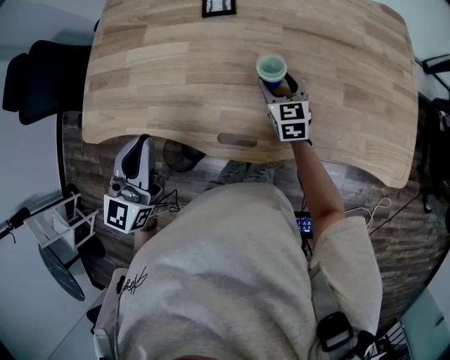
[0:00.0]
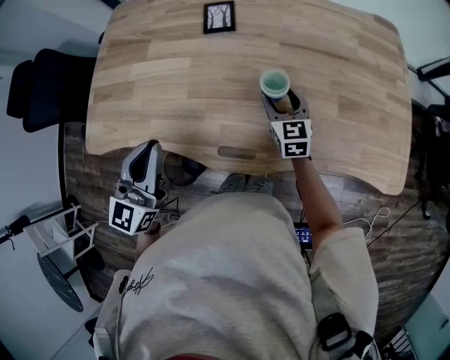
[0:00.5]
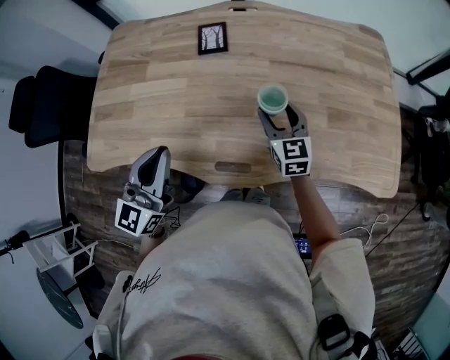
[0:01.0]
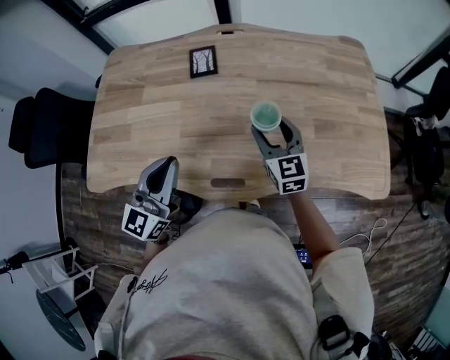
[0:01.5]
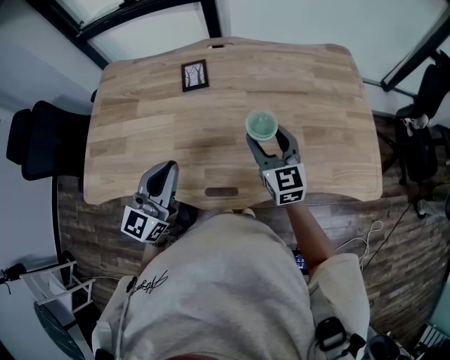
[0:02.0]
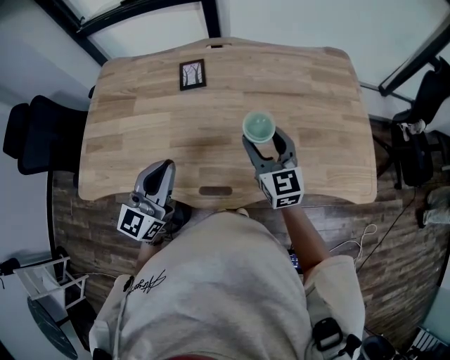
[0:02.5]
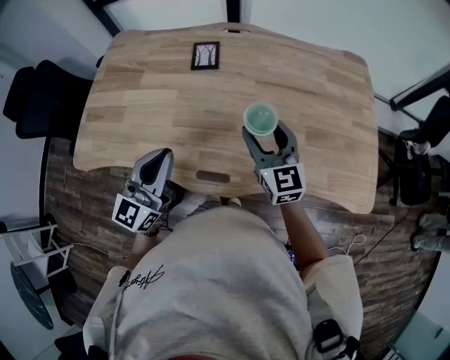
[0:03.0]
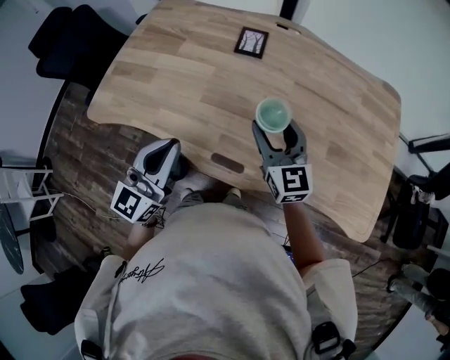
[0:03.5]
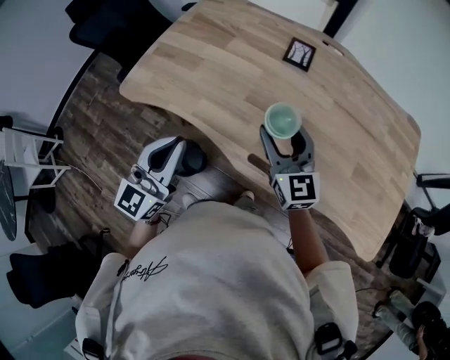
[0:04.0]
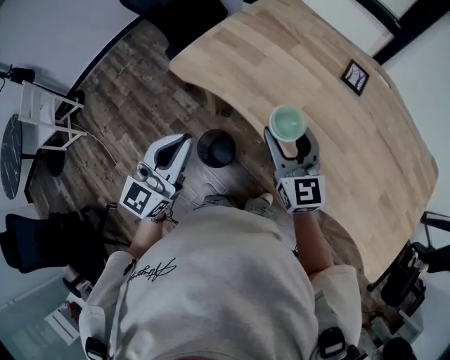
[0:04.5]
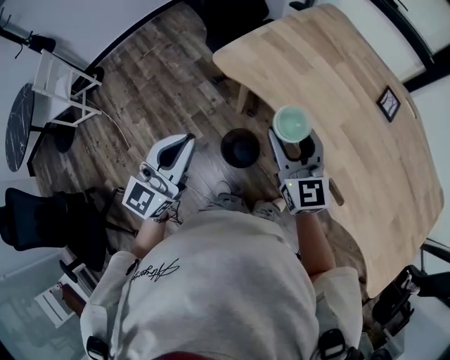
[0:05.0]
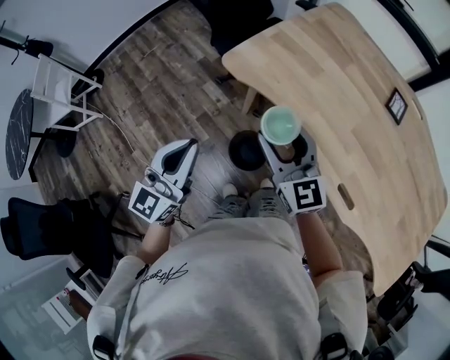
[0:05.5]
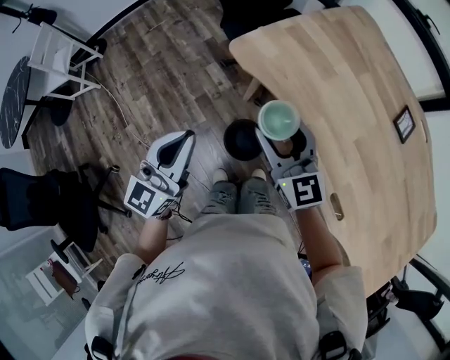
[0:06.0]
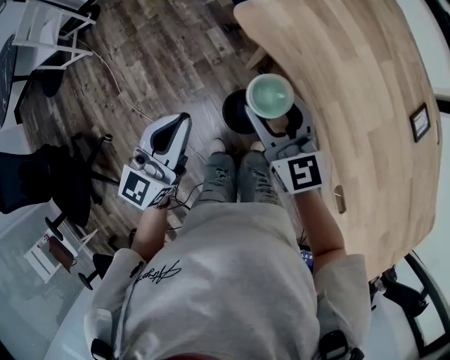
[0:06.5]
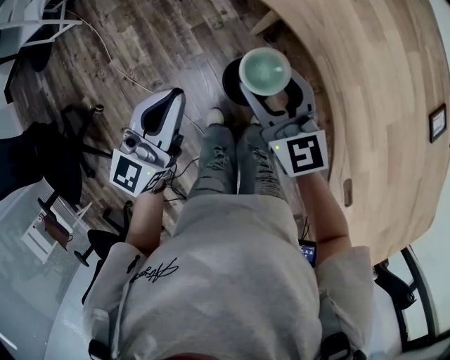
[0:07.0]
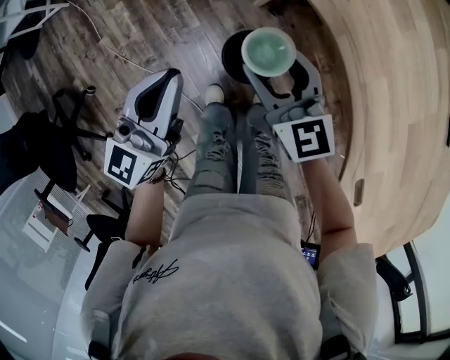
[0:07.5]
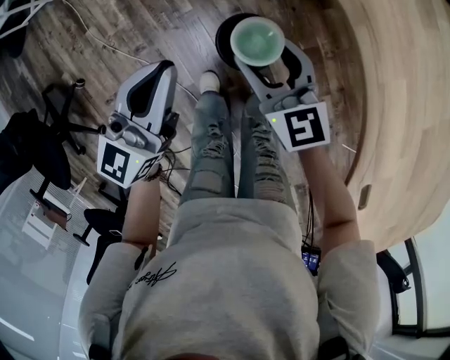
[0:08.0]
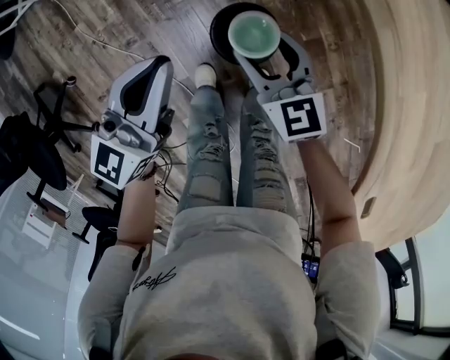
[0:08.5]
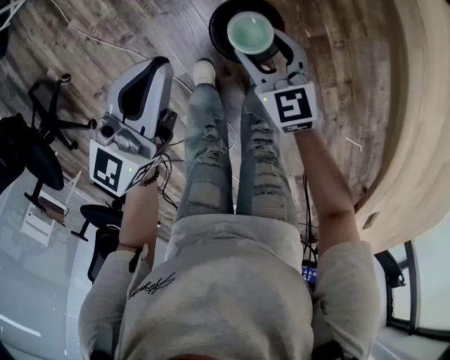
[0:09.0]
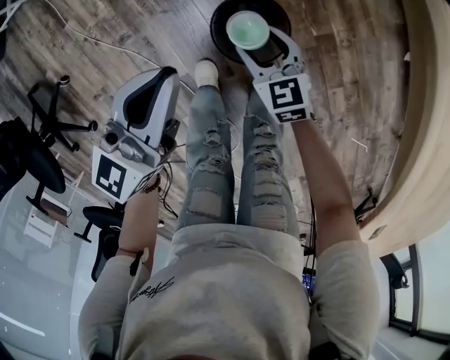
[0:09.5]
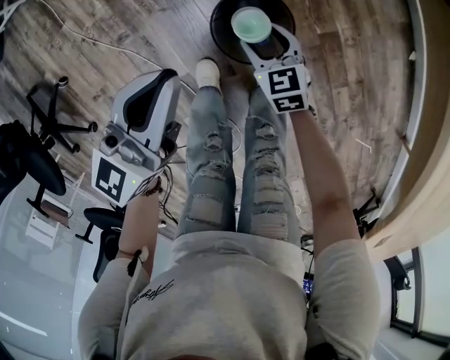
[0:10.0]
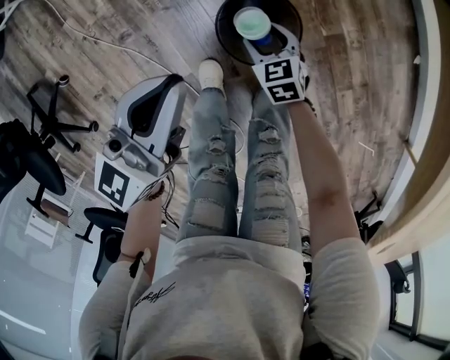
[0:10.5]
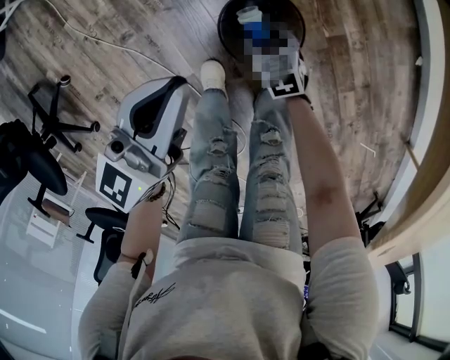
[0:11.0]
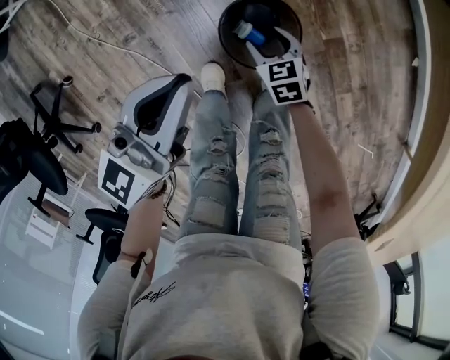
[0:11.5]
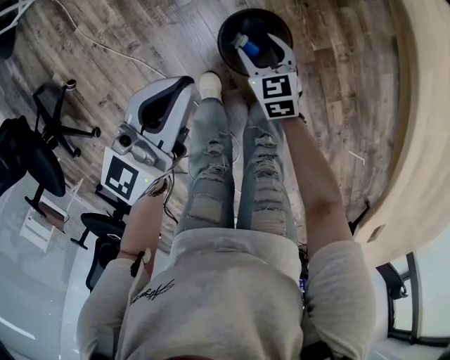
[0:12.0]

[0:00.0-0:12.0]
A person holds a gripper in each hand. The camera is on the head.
0:00.0 to 0:02.0: The right gripper heads upward, covering approximately 15 cm. Meanwhile the left gripper moves to the right, roughly 5 cm.
0:02.0 to 0:04.0: The left gripper changes place by roughly 20 cm, and swivels roughly 30 degrees, while the right gripper moves about 20 cm, and changes its angle by some 30 degrees.
0:04.0 to 0:06.0: The left gripper ends up some 30 cm from where it was, and changes its angle by about 30 degrees; the right gripper ends up about 40 cm from where it was, and changes its angle by approximately 30 degrees.
0:06.0 to 0:08.0: The two grippers go approximately 25 cm downward. The right gripper swivels some 20 degrees.
0:08.0 to 0:10.0: The right gripper travels downward by about 30 cm, and changes its angle by about 20 degrees. Meanwhile the left gripper travels downward by about 15 cm.
0:10.0 to 0:12.0: The right gripper moves approximately 10 cm downward and comes back.

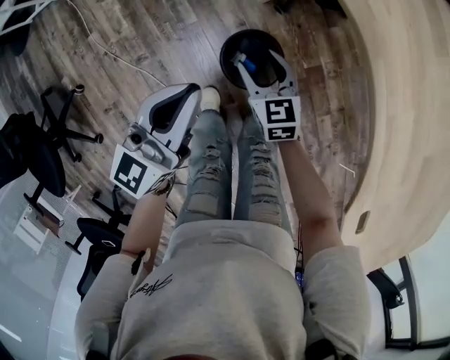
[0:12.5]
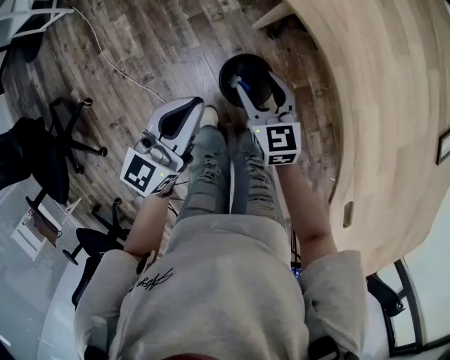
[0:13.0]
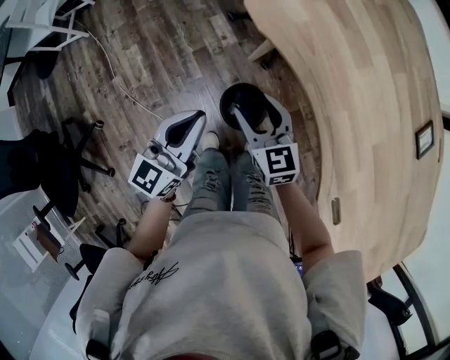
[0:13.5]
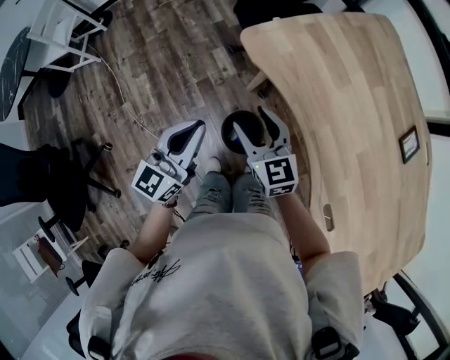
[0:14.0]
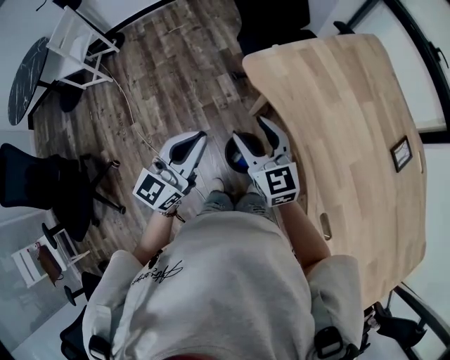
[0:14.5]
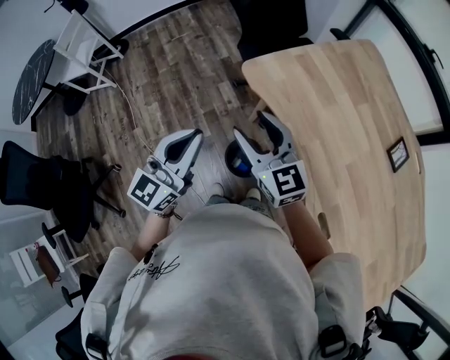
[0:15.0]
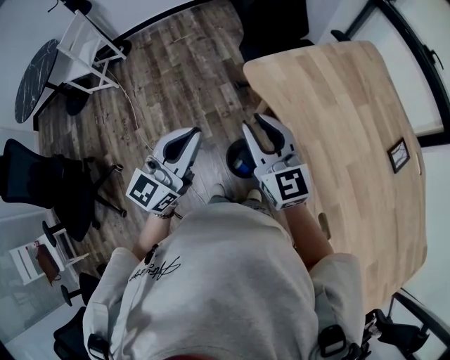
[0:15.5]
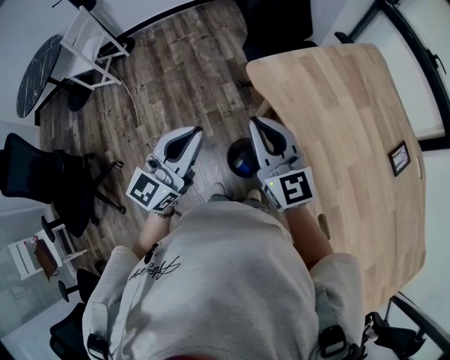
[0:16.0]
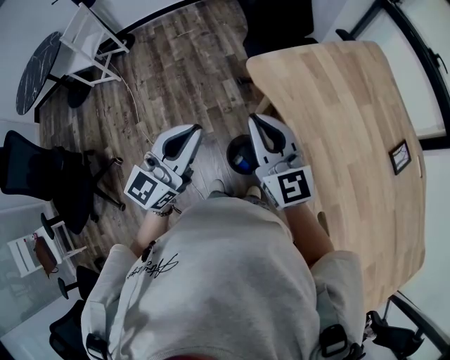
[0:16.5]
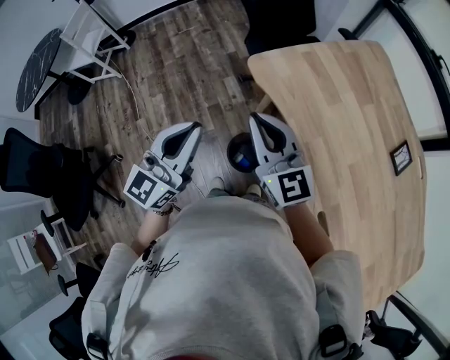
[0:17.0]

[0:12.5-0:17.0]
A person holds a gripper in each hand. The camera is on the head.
0:12.5 to 0:14.5: The left gripper travels upward by approximately 25 cm. The right gripper goes some 40 cm upward, and changes its angle by some 30 degrees.
0:14.5 to 0:17.0: The left gripper heads upward, covering some 5 cm. The right gripper shifts about 10 cm upward, and closes up.

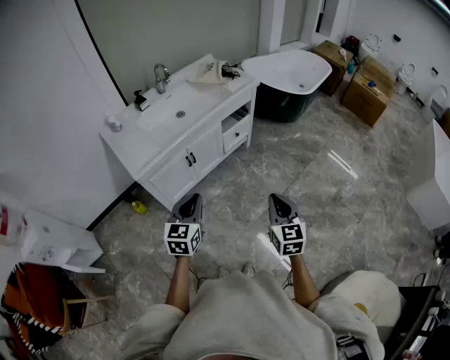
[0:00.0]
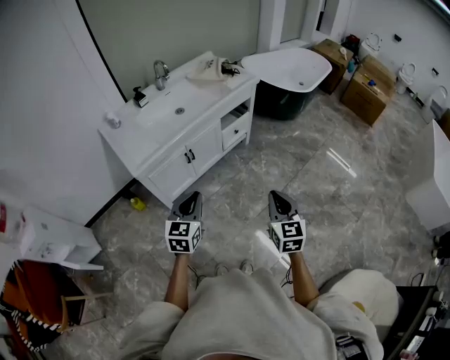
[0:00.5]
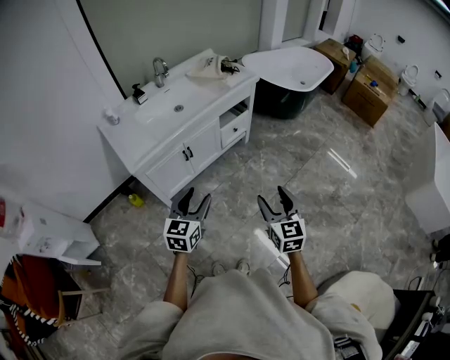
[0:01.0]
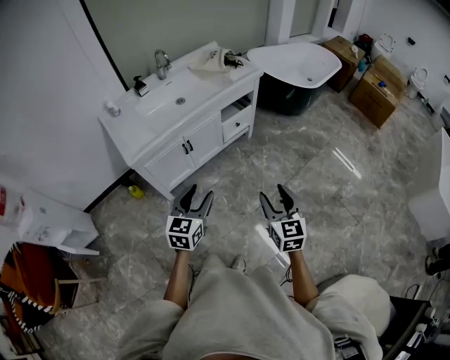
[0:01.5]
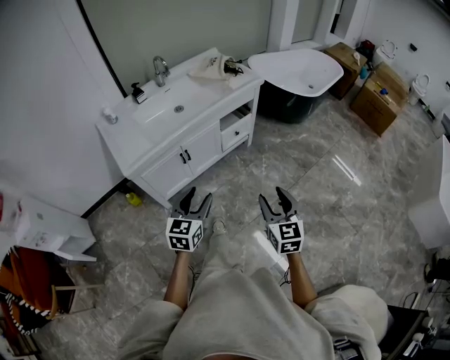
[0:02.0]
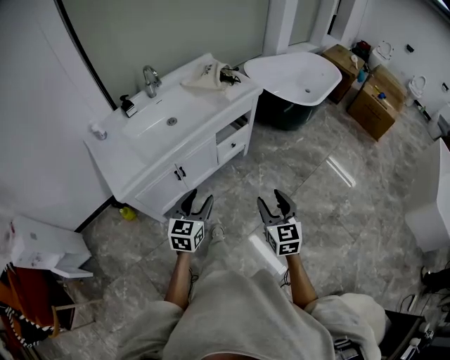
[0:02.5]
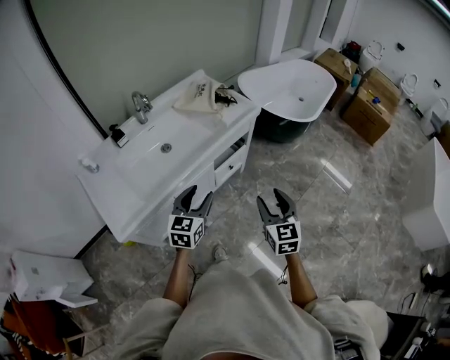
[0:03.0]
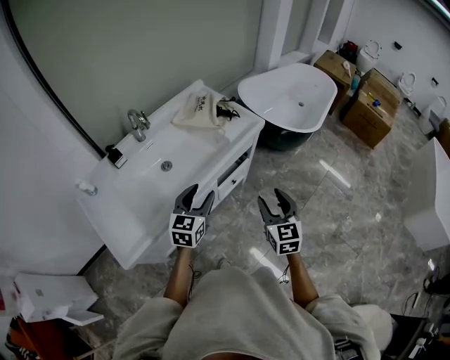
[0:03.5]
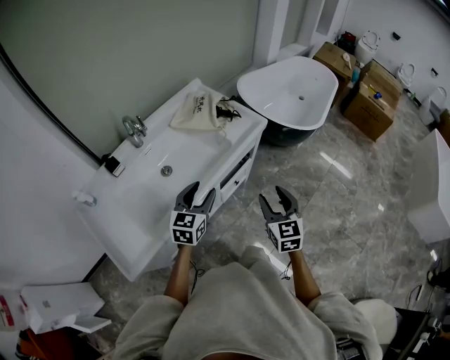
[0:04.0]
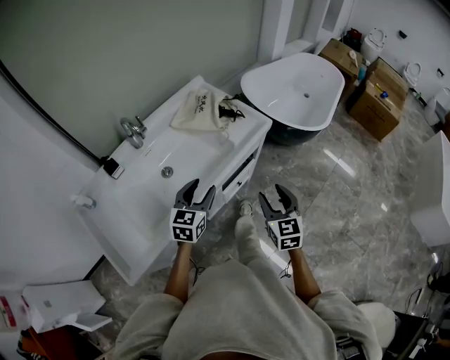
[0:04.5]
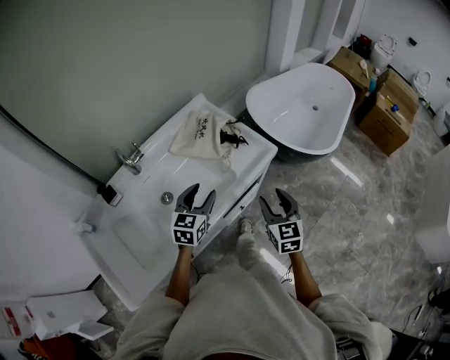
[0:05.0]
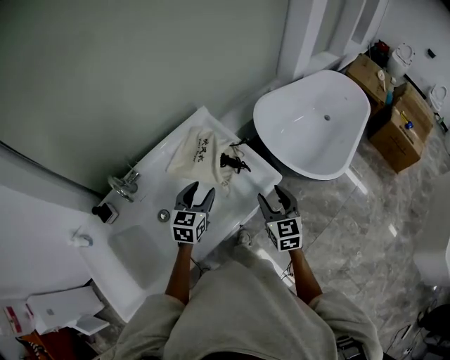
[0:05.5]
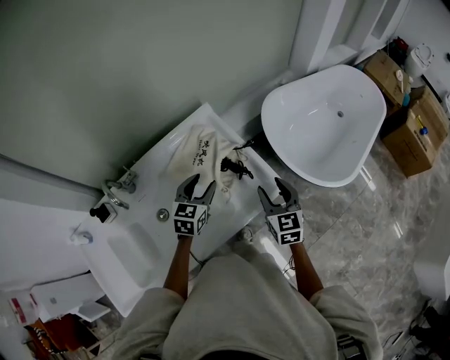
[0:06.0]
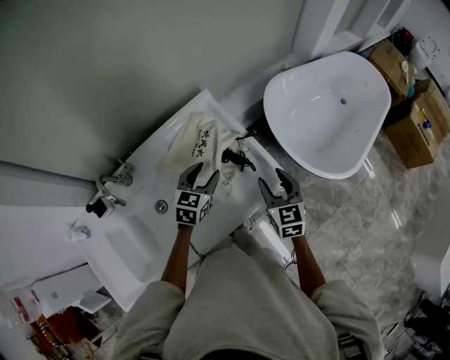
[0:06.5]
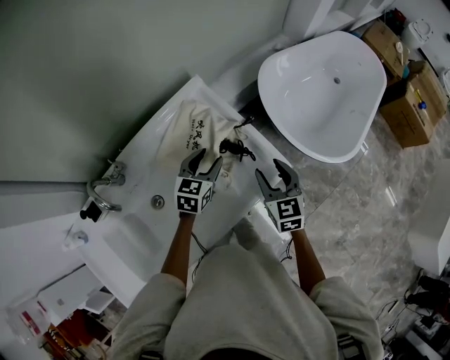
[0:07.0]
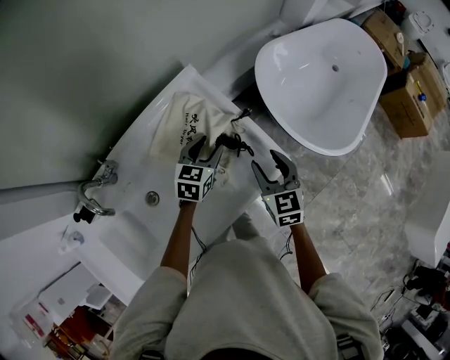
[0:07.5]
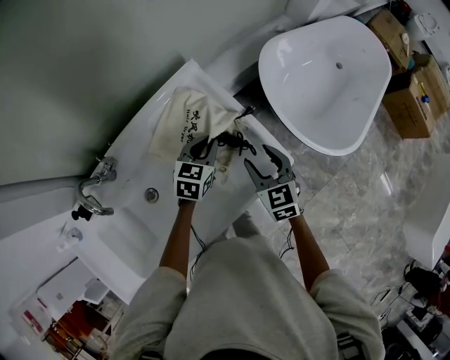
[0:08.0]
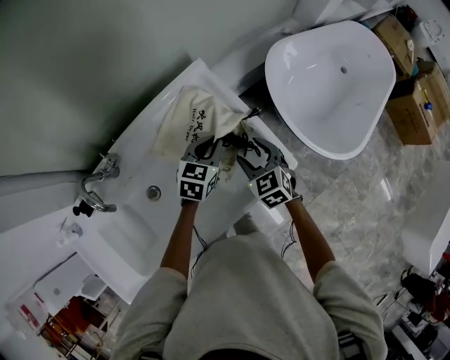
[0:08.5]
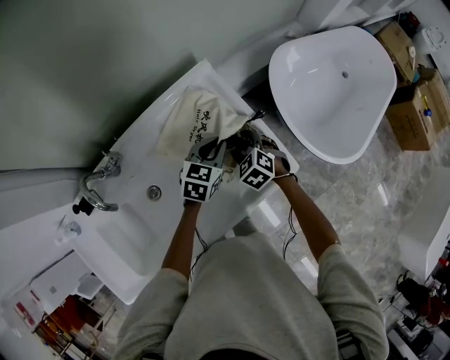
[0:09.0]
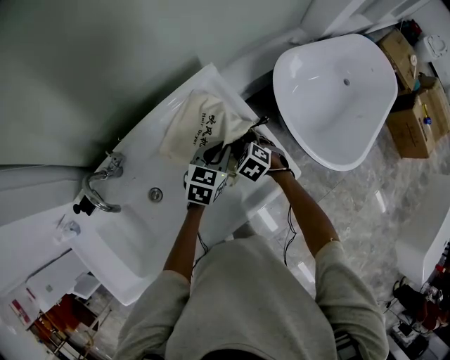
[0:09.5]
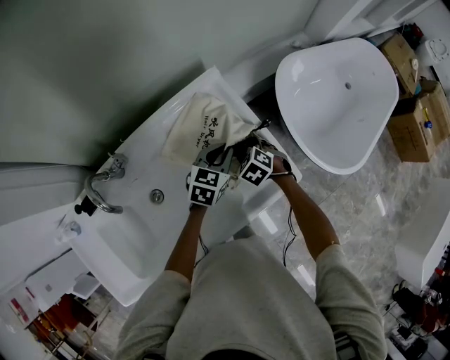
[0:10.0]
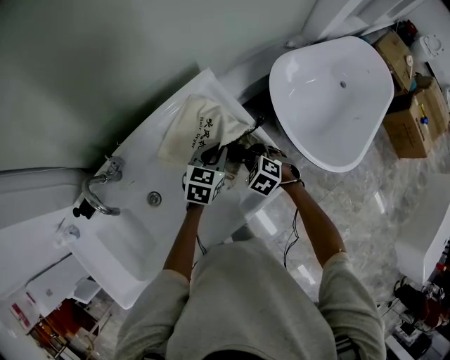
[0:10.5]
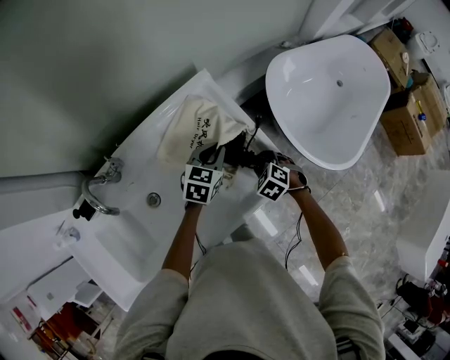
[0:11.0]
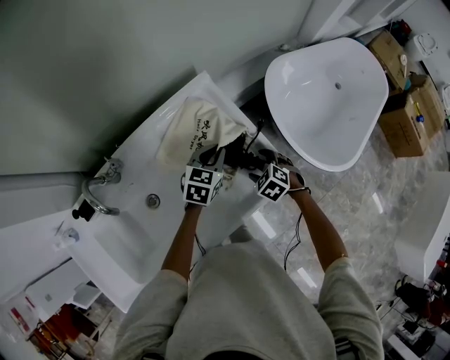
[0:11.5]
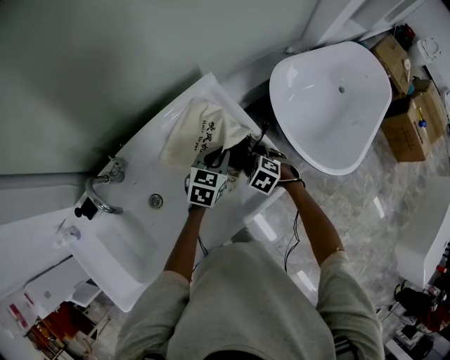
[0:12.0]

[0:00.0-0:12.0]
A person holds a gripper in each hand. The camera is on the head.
0:00.0 to 0:02.0: The left gripper travels to the right and forward by some 10 cm, and opens up, while the right gripper heads forward, covering about 5 cm, and opens.
0:02.0 to 0:04.0: The pair of grippers is taken forward, roughly 40 cm.
0:04.0 to 0:06.0: Both grippers move forward, approximately 40 cm.
0:06.0 to 0:08.0: The right gripper moves downward, to the left and forward, roughly 10 cm. Meanwhile the left gripper shifts some 10 cm forward and downward, and closes its fingers.
0:08.0 to 0:10.0: The right gripper shifts some 15 cm downward, to the left and forward, and tips its fingers downward by approximately 30 degrees.
0:10.0 to 0:12.0: The right gripper opens.
